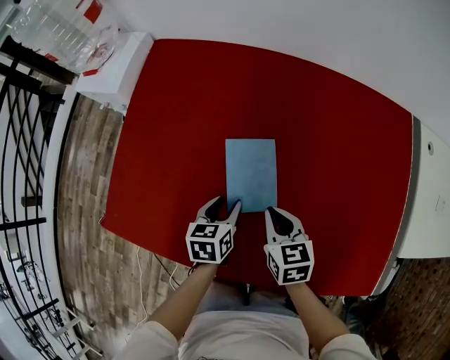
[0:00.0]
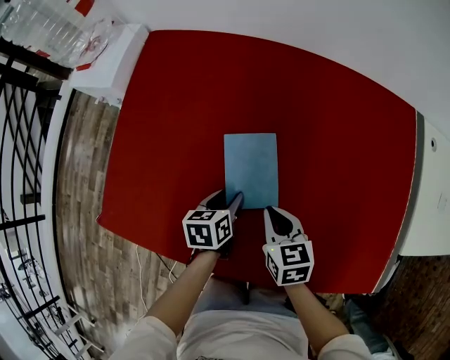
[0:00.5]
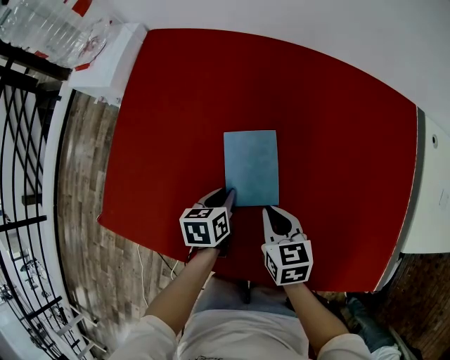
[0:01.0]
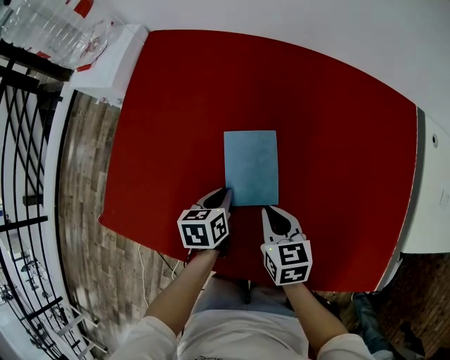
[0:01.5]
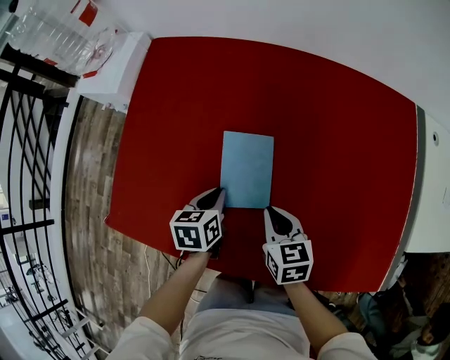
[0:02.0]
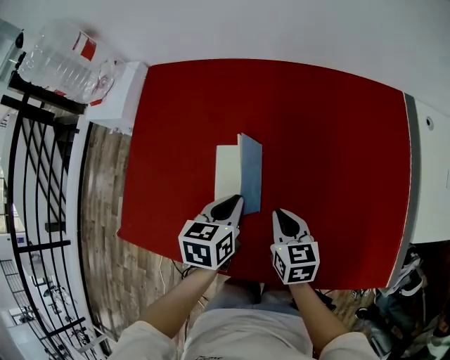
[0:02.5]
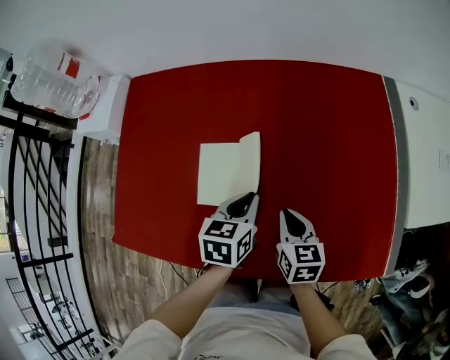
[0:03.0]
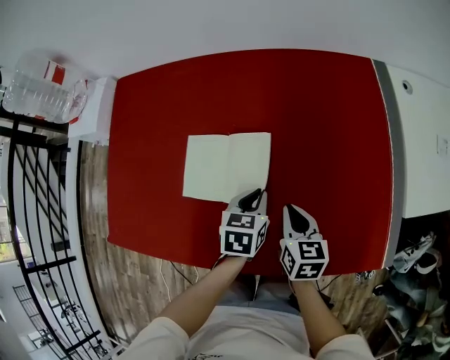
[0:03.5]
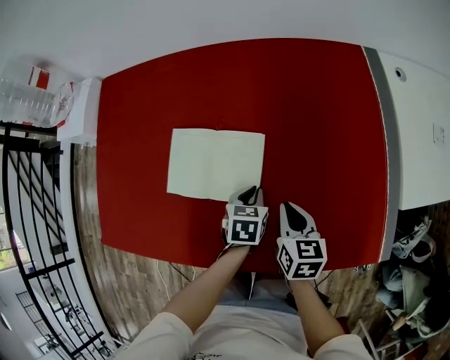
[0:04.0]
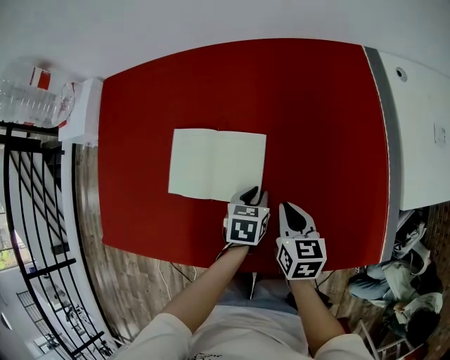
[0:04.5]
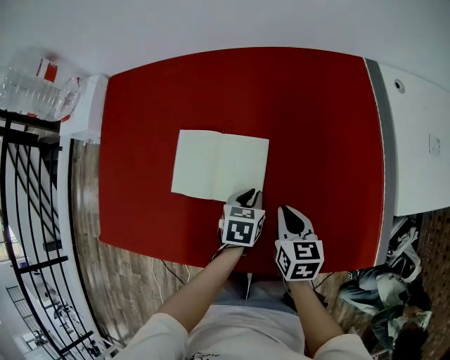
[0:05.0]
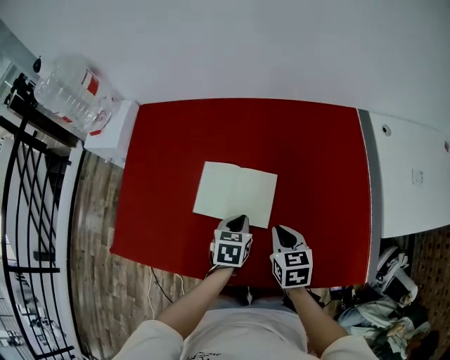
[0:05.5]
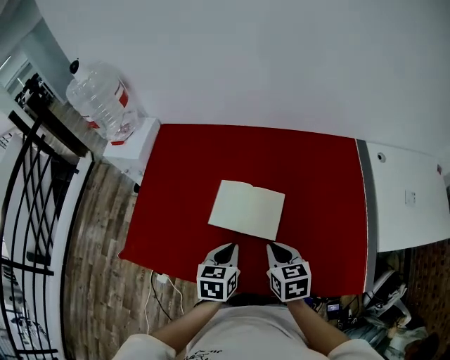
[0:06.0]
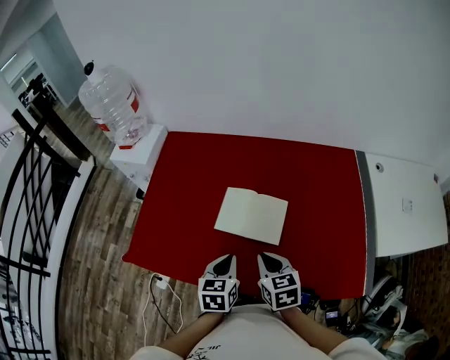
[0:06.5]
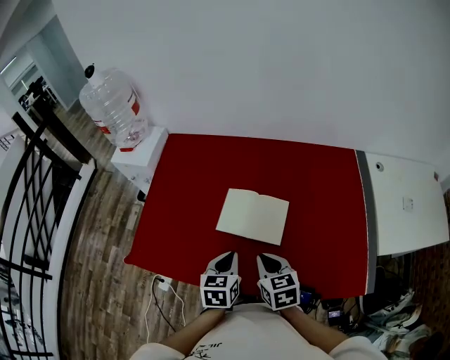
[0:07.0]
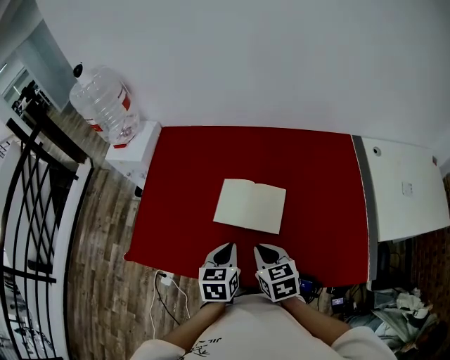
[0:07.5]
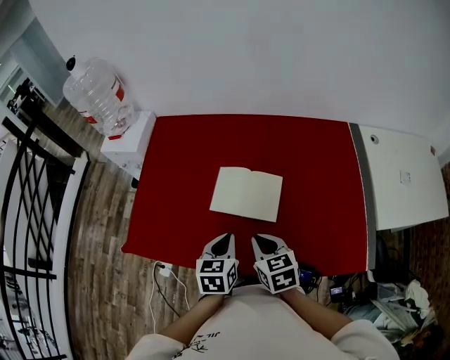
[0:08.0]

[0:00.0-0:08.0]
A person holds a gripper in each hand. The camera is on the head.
0:00.0 to 0:02.0: The left gripper closes its fingers.
0:02.0 to 0:04.0: The grippers both shift to the right by roughly 25 cm. The right gripper changes its angle by roughly 20 degrees, while the left gripper rotates approximately 30 degrees.
0:04.0 to 0:06.0: The right gripper shifts some 20 cm upward and to the left, and turns by approximately 20 degrees. The left gripper shifts about 25 cm upward, to the left and backward, and turns by some 20 degrees.
0:06.0 to 0:08.0: The right gripper is displaced to the left by some 5 cm.

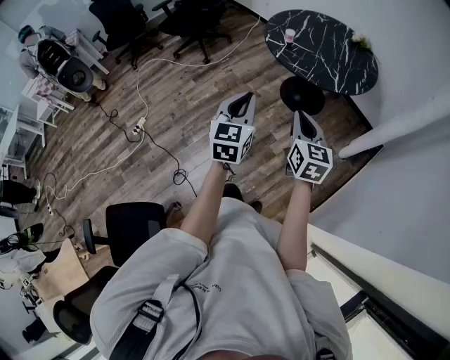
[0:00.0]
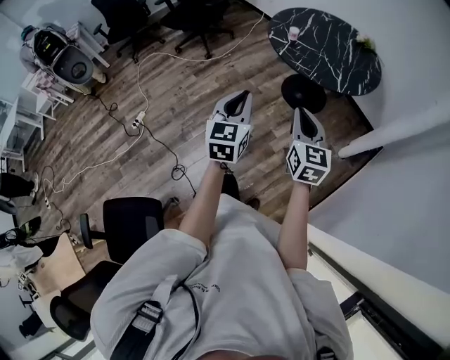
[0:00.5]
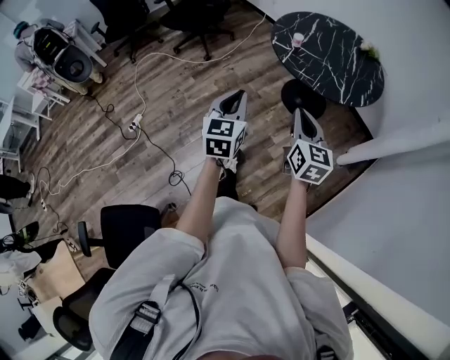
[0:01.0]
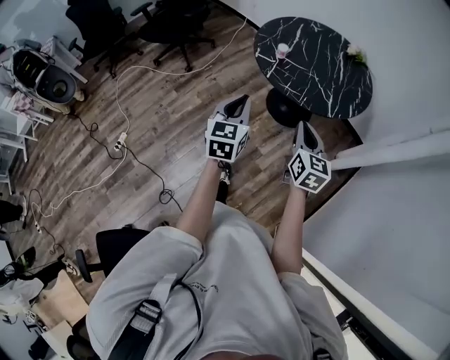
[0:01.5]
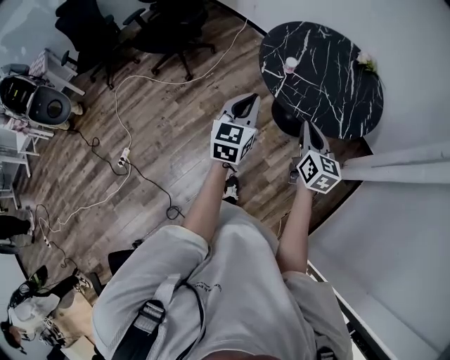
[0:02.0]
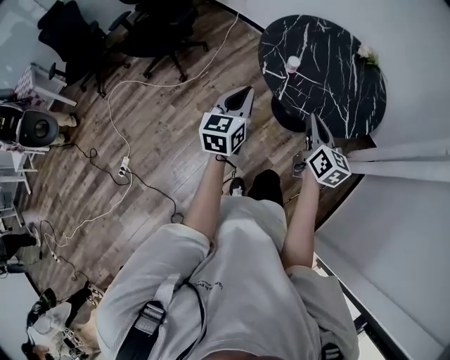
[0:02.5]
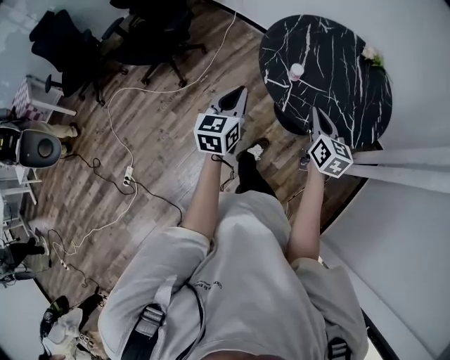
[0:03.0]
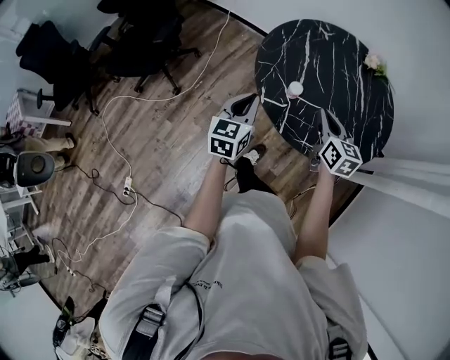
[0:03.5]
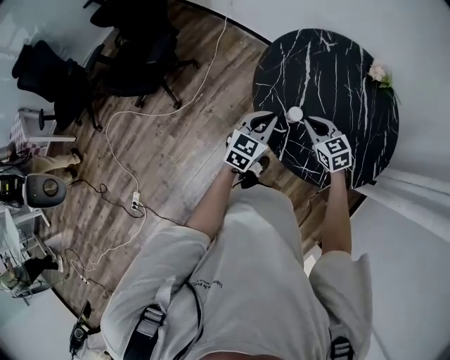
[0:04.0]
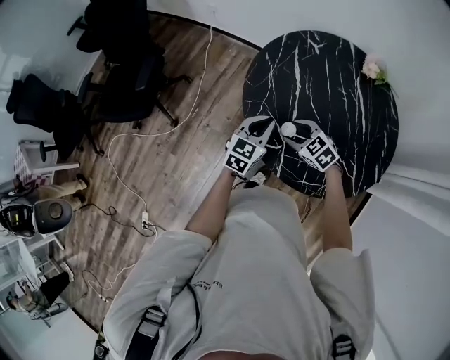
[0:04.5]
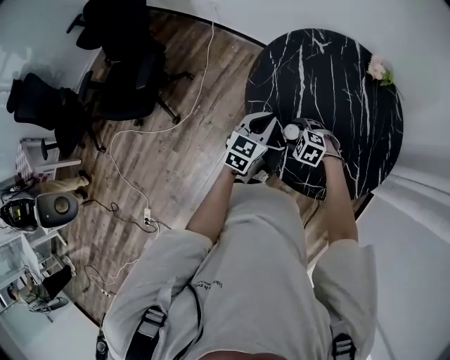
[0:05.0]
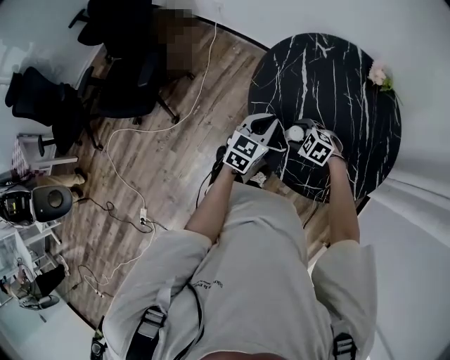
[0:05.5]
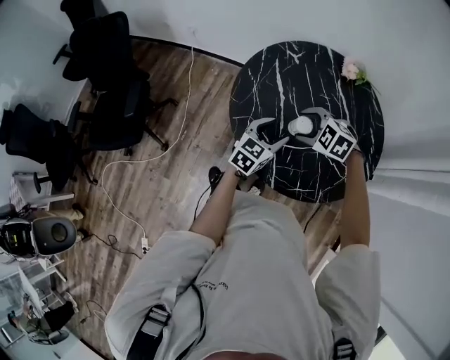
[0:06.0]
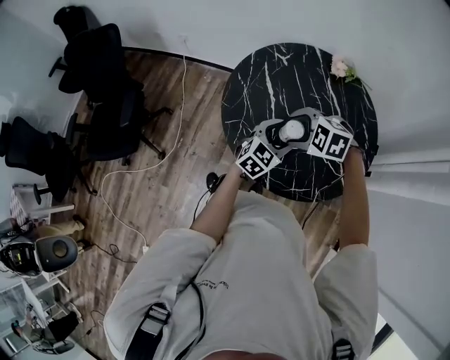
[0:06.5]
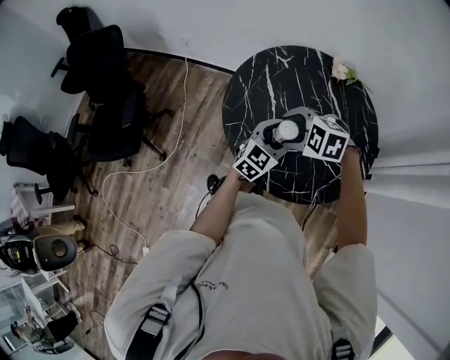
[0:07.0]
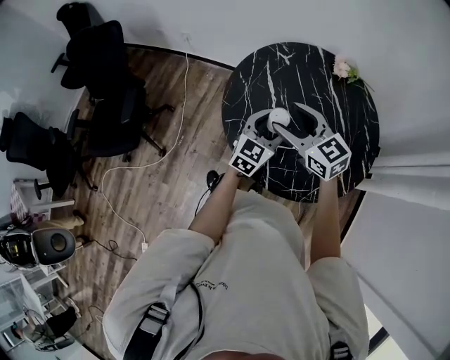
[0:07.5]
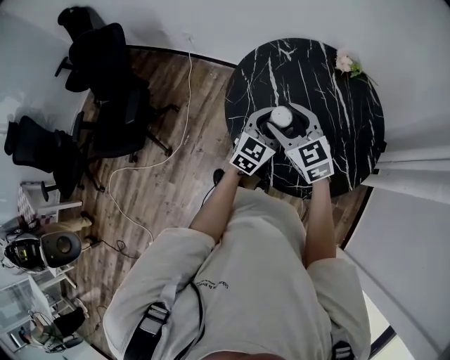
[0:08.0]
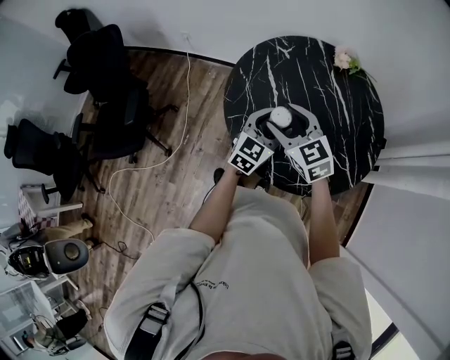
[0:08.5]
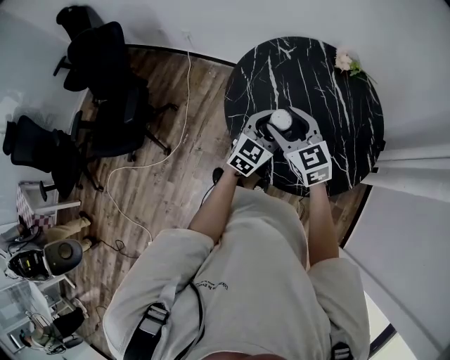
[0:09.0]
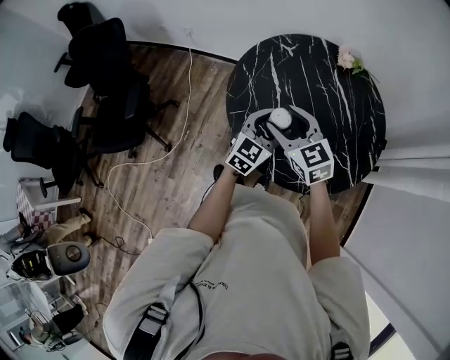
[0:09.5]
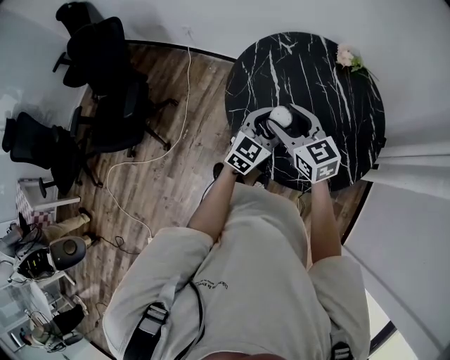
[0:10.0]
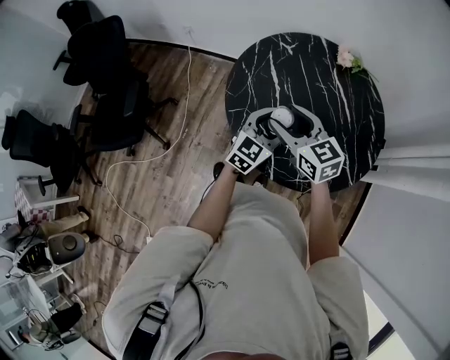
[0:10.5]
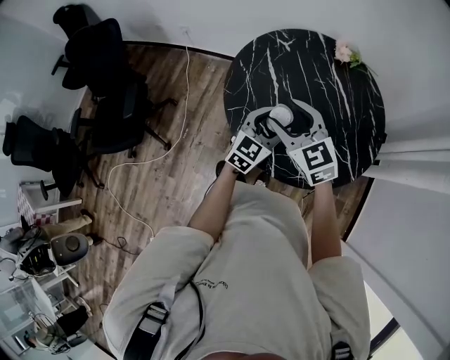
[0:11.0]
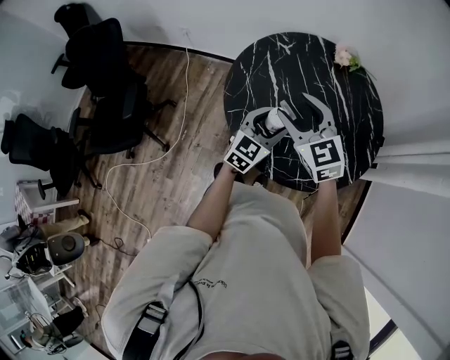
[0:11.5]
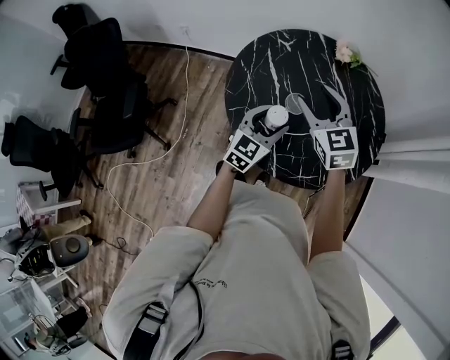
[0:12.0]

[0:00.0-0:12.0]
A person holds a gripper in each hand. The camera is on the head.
0:00.0 to 0:02.0: Both grippers travel together forward, some 35 cm.
0:02.0 to 0:04.0: Both grippers travel together forward, roughly 40 cm. The left gripper changes its angle by roughly 30 degrees; the right gripper changes its angle by roughly 40 degrees.
0:04.0 to 0:06.0: The right gripper goes about 5 cm forward, travels downward and back again, some 10 cm each way, turns by approximately 30 degrees, and opens. The left gripper is displaced to the right and forward by roughly 10 cm, swivels about 20 degrees, and opens.
0:06.0 to 0:08.0: The right gripper goes some 10 cm upward, and tips its fingers upward by approximately 40 degrees; the left gripper heads upward, covering roughly 5 cm.
0:08.0 to 0:10.0: There are only small adjustments of the grippers.
0:10.0 to 0:12.0: The right gripper is displaced to the right and forward by about 10 cm, and swivels approximately 20 degrees.

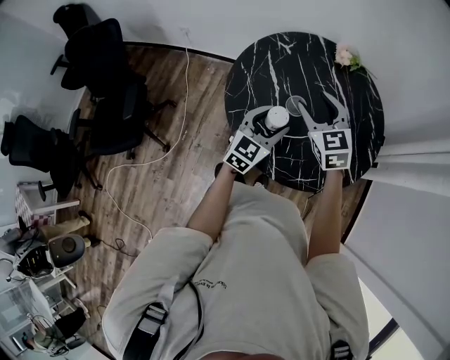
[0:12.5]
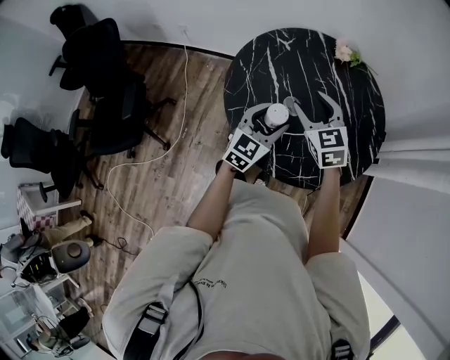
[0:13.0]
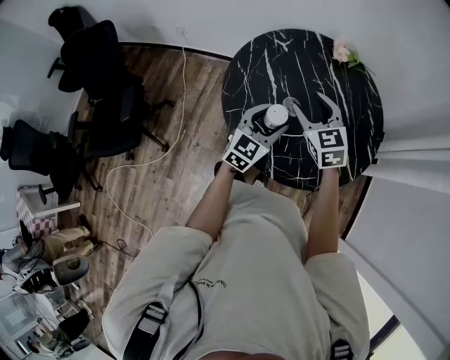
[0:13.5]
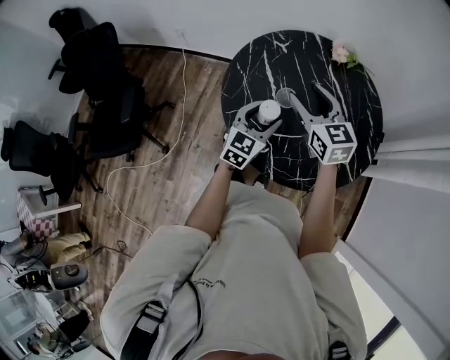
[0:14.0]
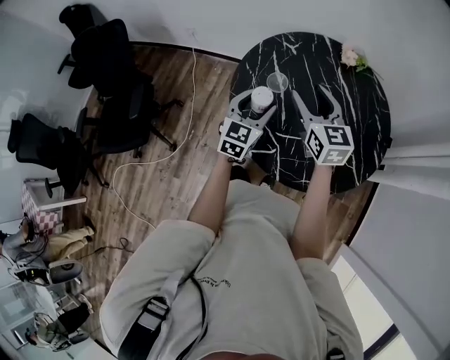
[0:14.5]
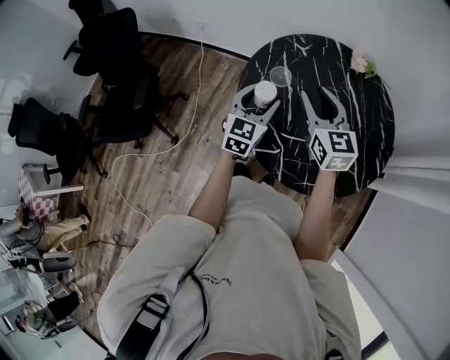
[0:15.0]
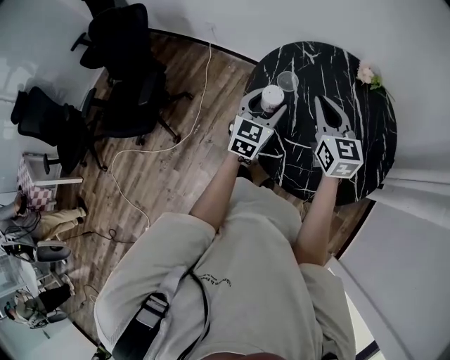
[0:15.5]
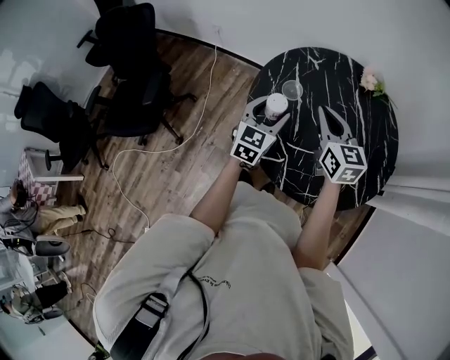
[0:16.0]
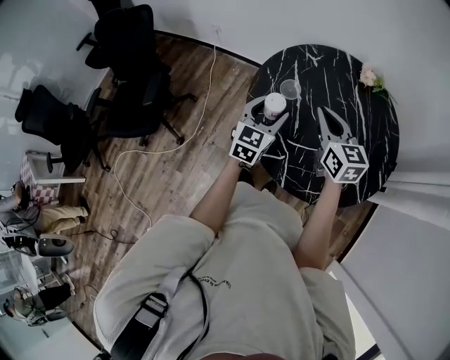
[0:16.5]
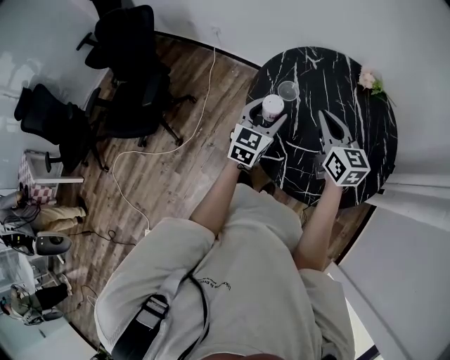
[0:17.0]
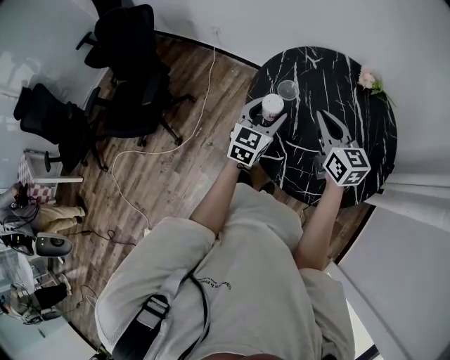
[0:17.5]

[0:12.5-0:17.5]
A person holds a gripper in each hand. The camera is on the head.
0:12.5 to 0:15.0: The left gripper shifts roughly 10 cm to the left and forward; the right gripper ends up roughly 5 cm from where it was.
0:15.0 to 0:17.5: The right gripper closes up.

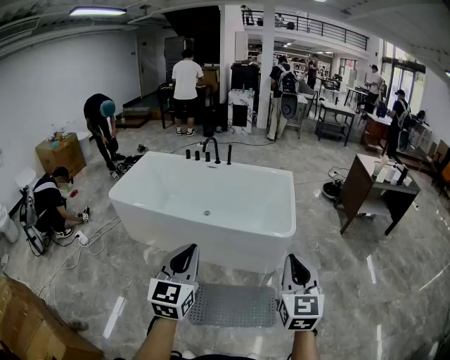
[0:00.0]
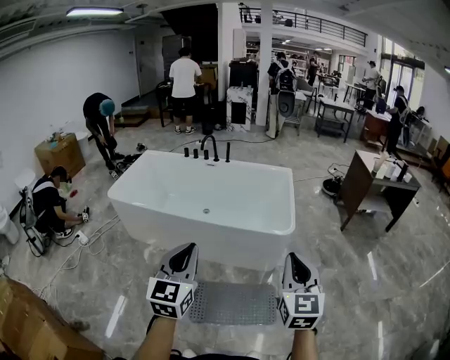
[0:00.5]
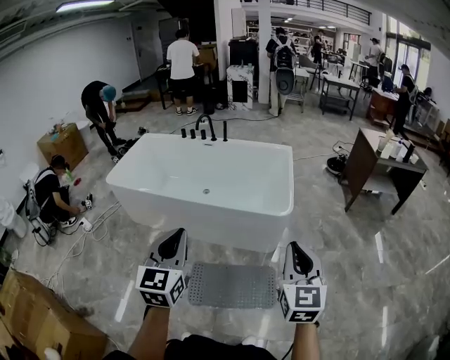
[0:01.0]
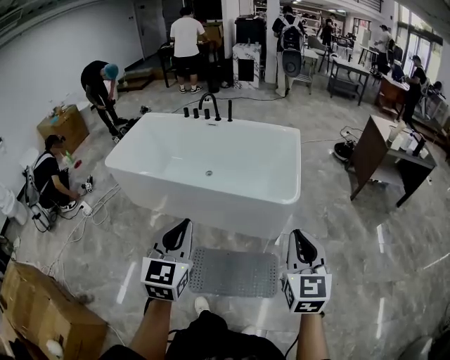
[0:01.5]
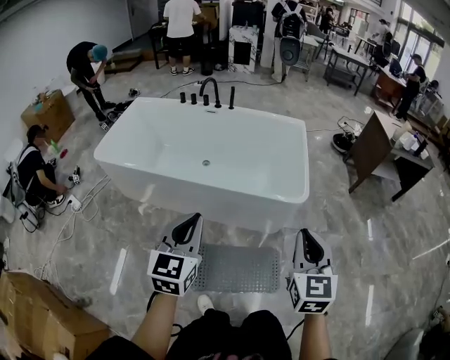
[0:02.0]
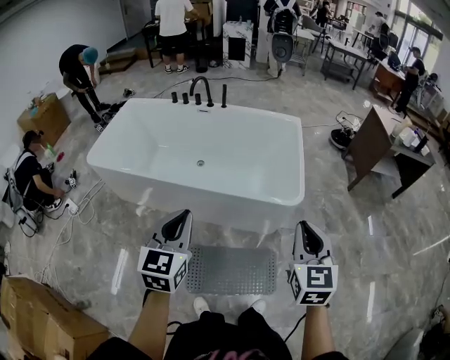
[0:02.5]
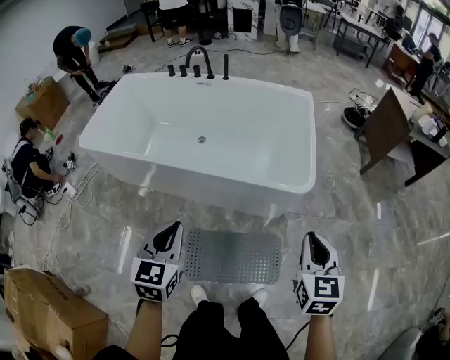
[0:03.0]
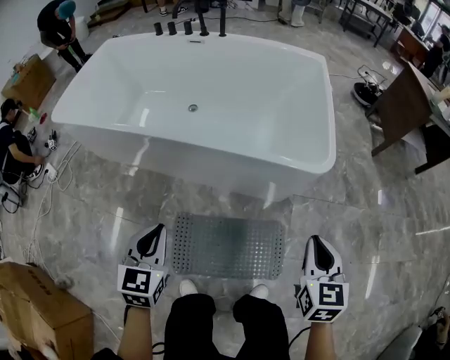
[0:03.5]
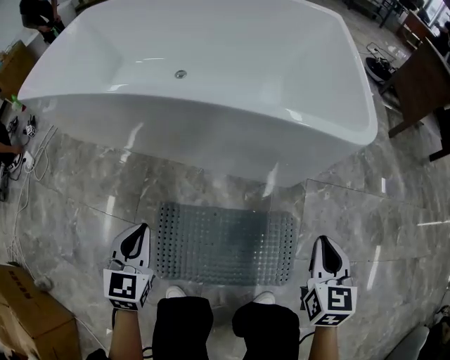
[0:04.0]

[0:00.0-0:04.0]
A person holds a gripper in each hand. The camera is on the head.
0:00.0 to 0:02.0: Both grippers move forward and downward, some 15 cm.
0:02.0 to 0:04.0: The grippers both shift downward by some 60 cm. The right gripper rotates roughly 20 degrees, while the left gripper turns by about 20 degrees.
